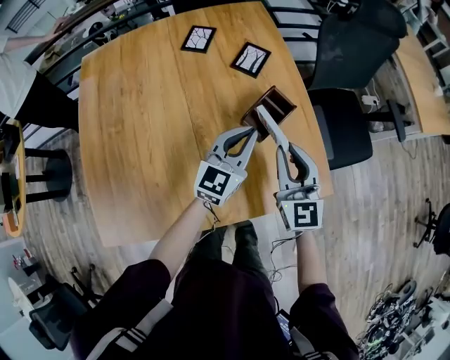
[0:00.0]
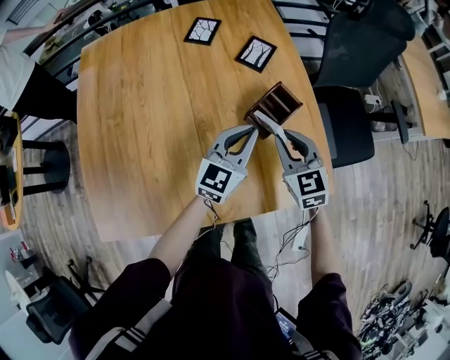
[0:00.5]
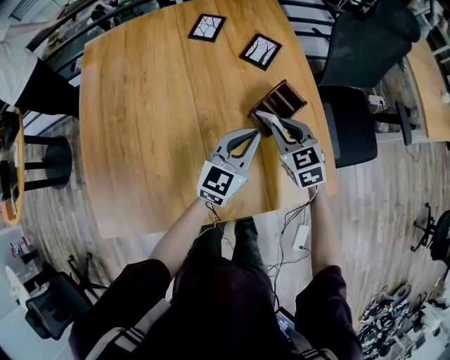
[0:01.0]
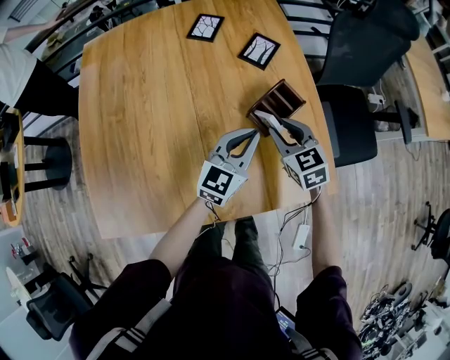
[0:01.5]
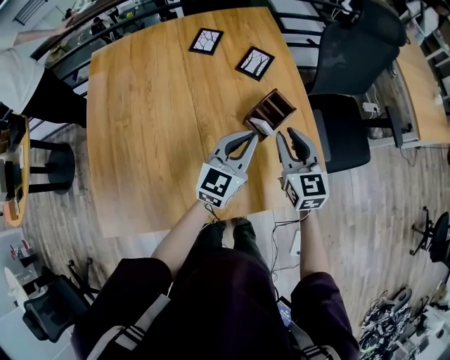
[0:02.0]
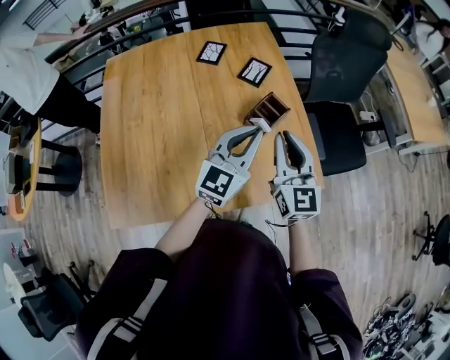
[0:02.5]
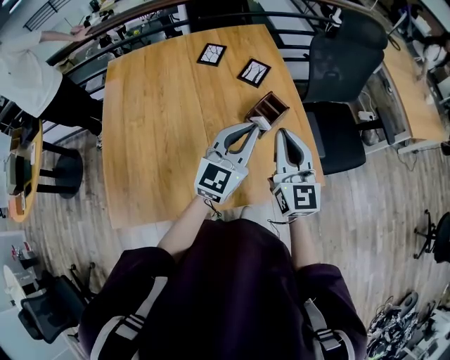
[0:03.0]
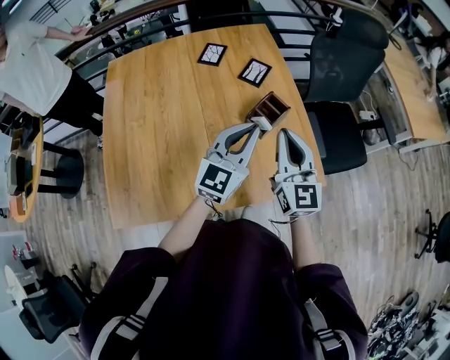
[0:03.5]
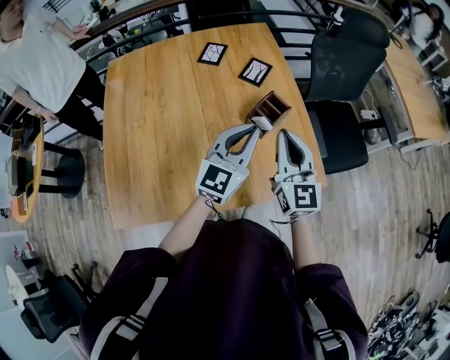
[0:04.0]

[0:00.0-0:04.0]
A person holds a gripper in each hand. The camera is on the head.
0:00.0 to 0:02.0: The right gripper goes downward and returns, roughly 10 cm each way.
0:02.0 to 0:04.0: The grippers both shift upward and backward by about 15 cm. The right gripper closes its fingers.

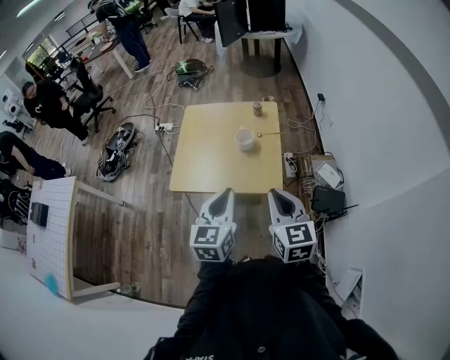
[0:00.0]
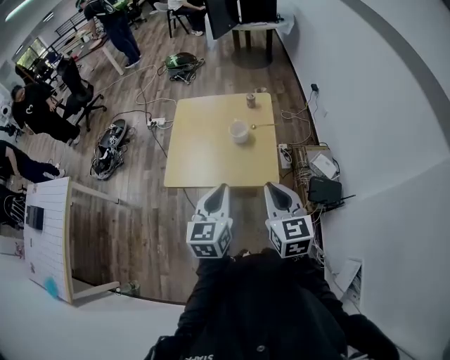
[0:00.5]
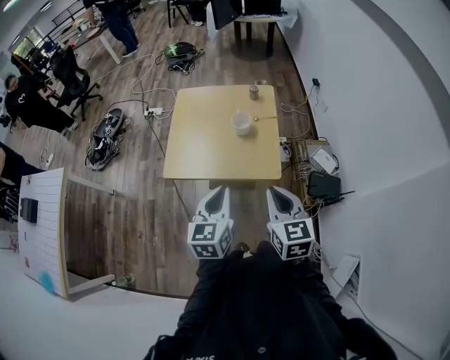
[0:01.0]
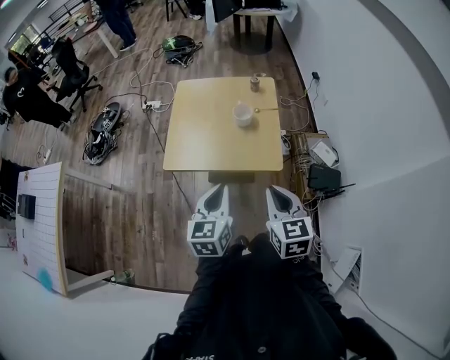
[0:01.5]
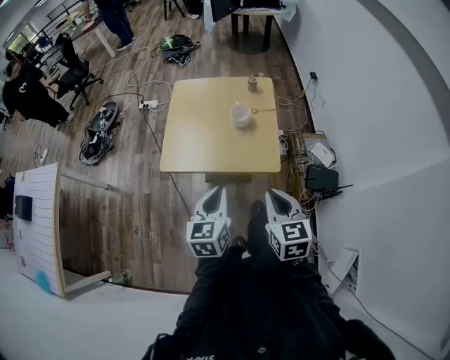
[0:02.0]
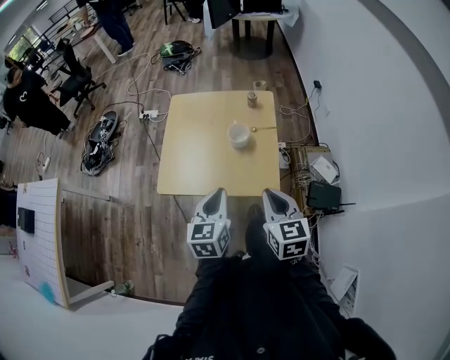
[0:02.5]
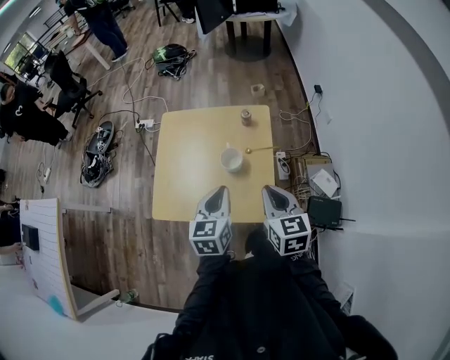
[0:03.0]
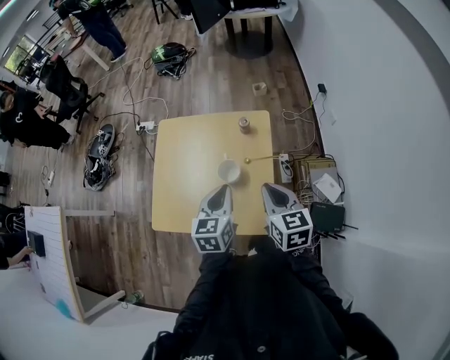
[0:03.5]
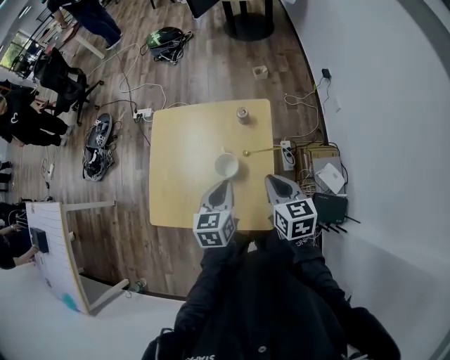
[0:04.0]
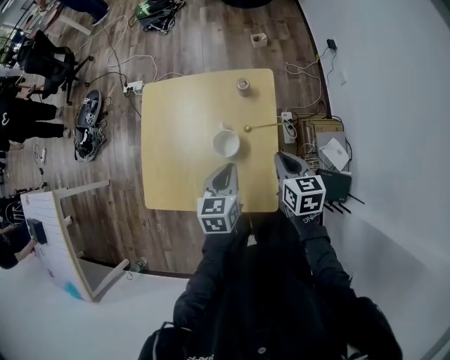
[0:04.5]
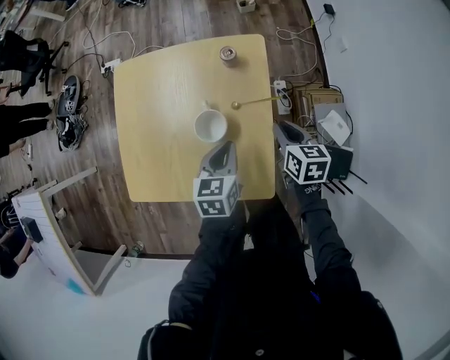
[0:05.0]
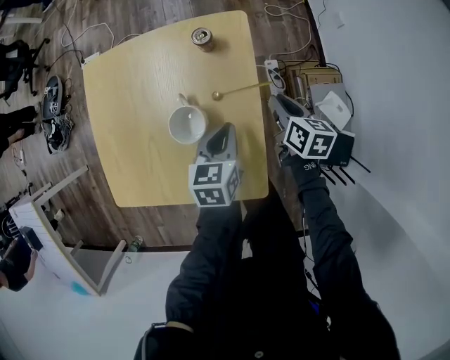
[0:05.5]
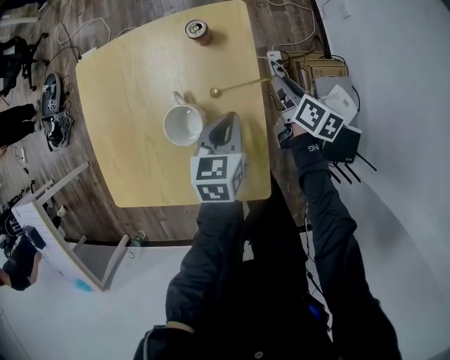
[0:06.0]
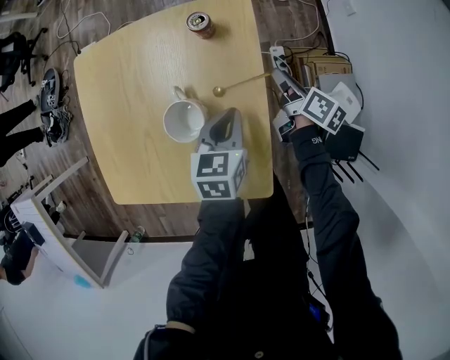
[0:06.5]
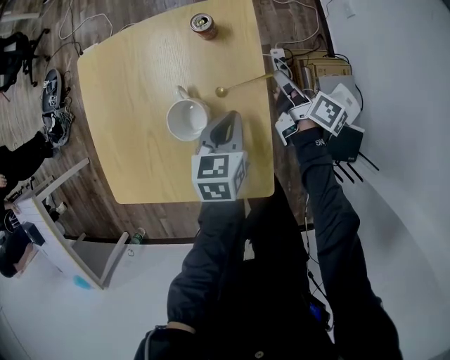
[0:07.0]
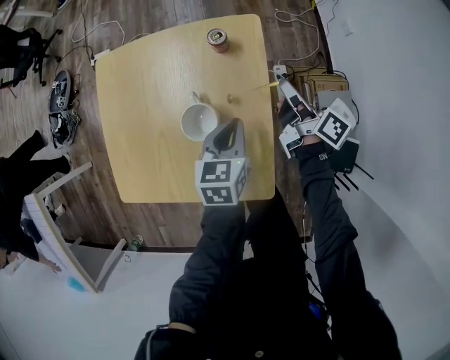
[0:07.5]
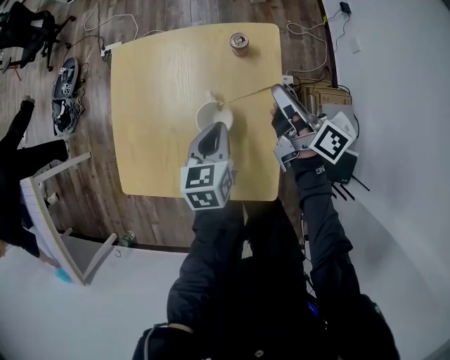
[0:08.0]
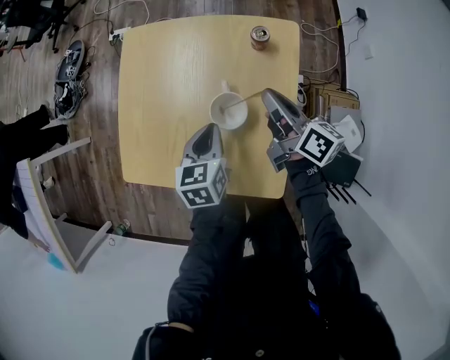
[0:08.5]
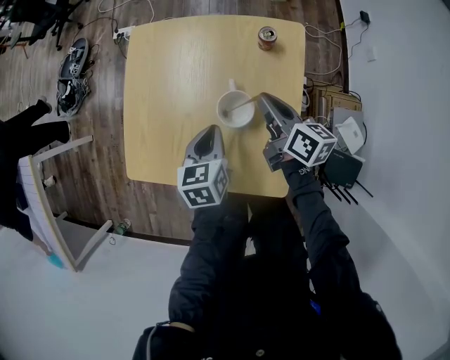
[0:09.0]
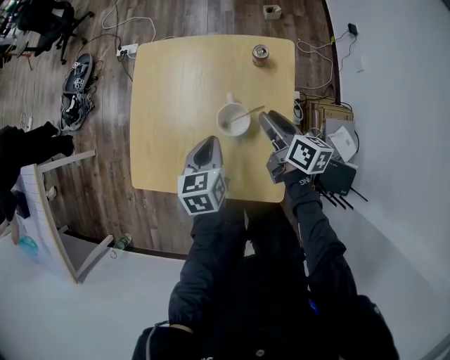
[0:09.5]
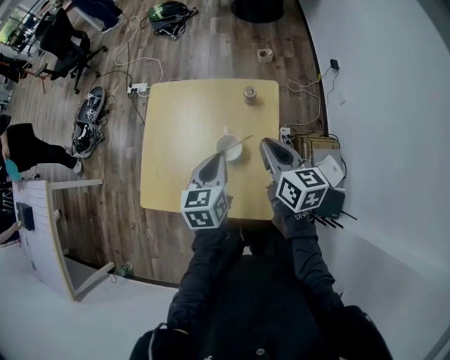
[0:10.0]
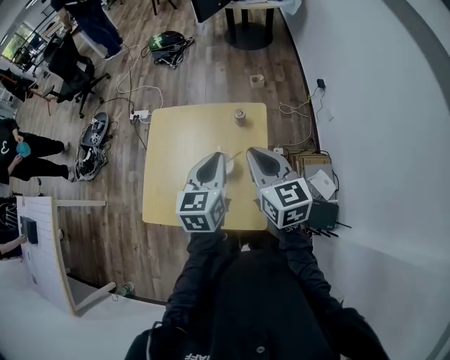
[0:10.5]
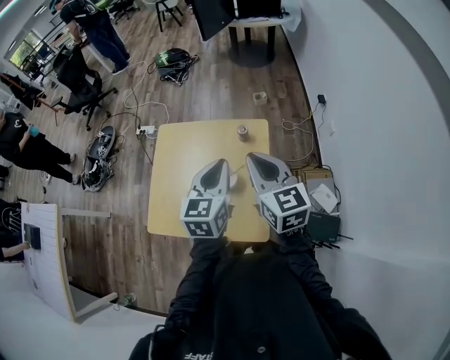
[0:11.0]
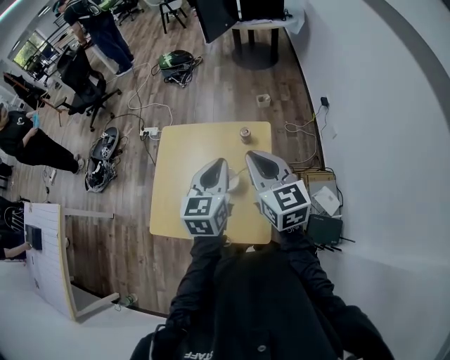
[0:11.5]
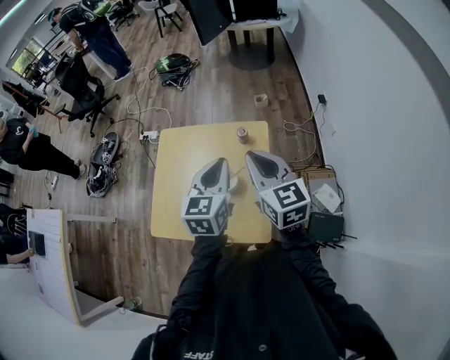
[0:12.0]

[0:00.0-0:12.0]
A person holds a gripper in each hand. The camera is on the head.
0:00.0 to 0:02.0: The left gripper travels downward and to the left by about 10 cm; the right gripper goes roughly 5 cm downward.
0:02.0 to 0:04.0: The left gripper travels forward and to the right by roughly 35 cm; the right gripper heads forward, covering roughly 35 cm.
0:04.0 to 0:06.0: The left gripper shifts some 25 cm downward, to the right and forward. The right gripper shifts approximately 35 cm downward and forward, changes its angle by approximately 40 degrees, and opens.
0:06.0 to 0:08.0: The left gripper travels to the left and upward by about 15 cm; the right gripper moves upward and to the left, some 20 cm, angles its fingers upward, by roughly 30 degrees, and closes up.
0:08.0 to 0:10.0: The right gripper heads upward, backward and to the left, covering roughly 15 cm, turns by some 40 degrees, and opens, then closes once more. Meanwhile the left gripper travels upward by about 15 cm.
0:10.0 to 0:12.0: The left gripper heads upward and to the right, covering approximately 15 cm, while the right gripper heads upward, covering some 15 cm, and swivels some 20 degrees.

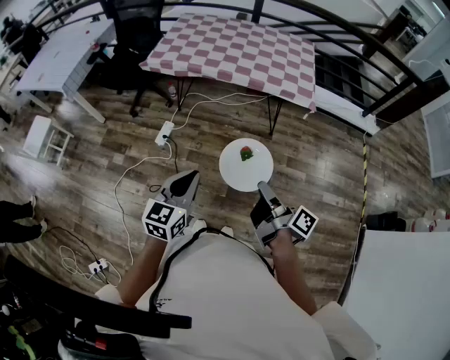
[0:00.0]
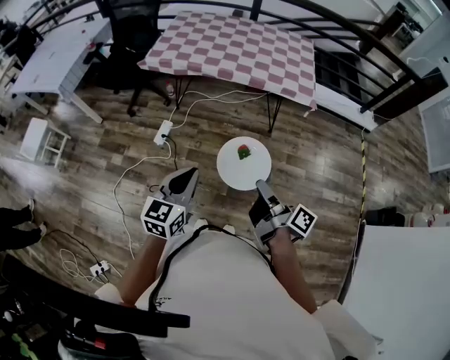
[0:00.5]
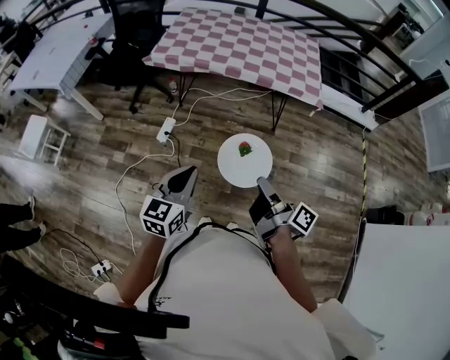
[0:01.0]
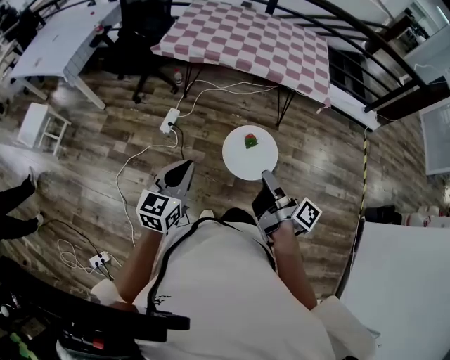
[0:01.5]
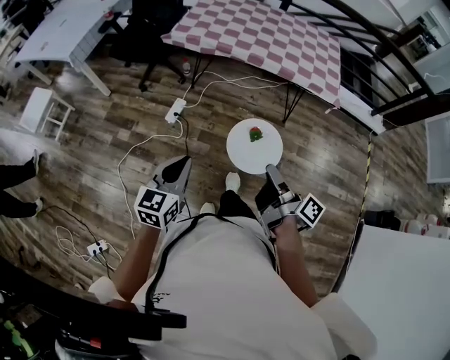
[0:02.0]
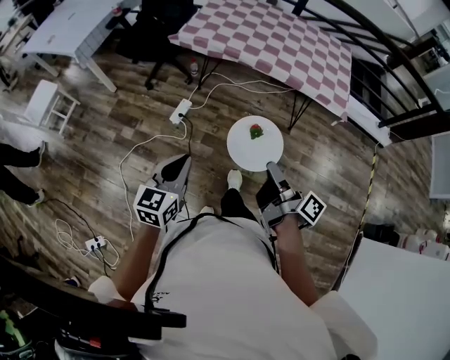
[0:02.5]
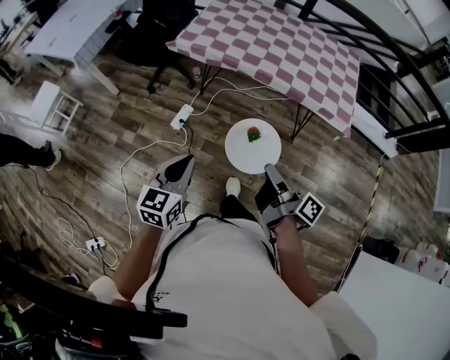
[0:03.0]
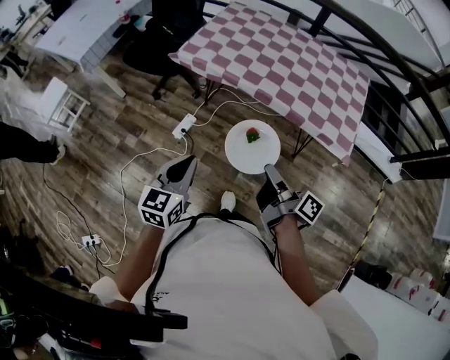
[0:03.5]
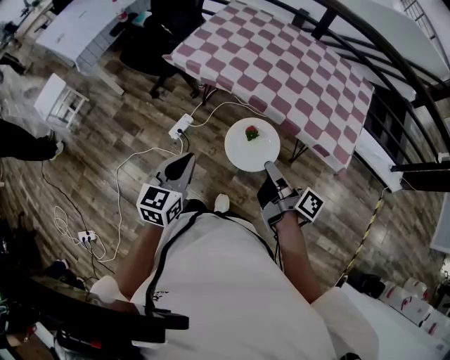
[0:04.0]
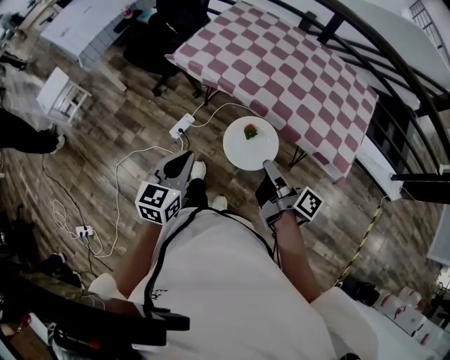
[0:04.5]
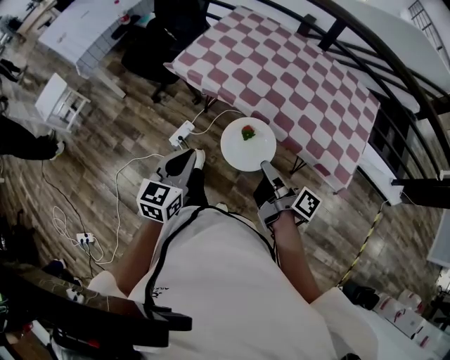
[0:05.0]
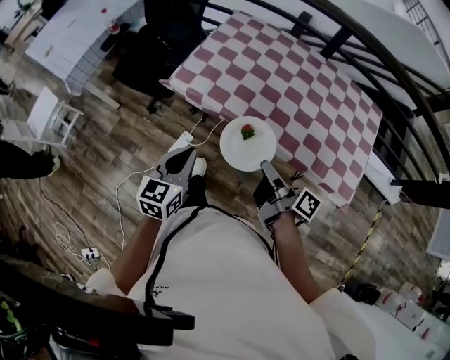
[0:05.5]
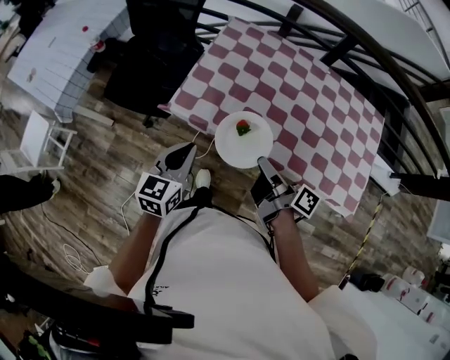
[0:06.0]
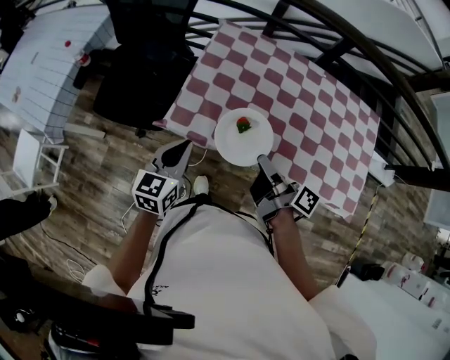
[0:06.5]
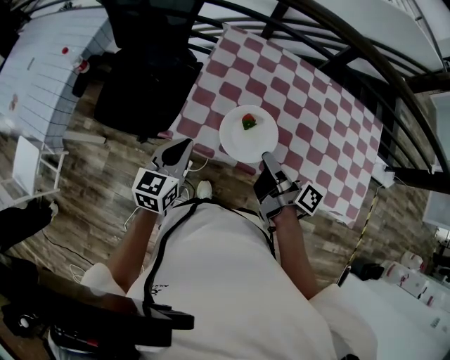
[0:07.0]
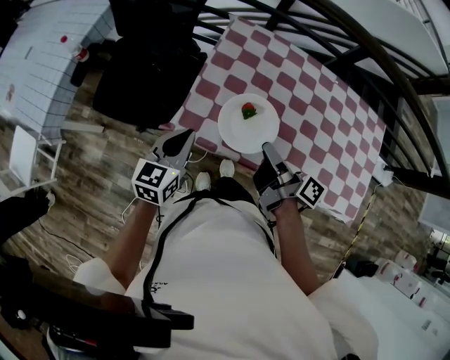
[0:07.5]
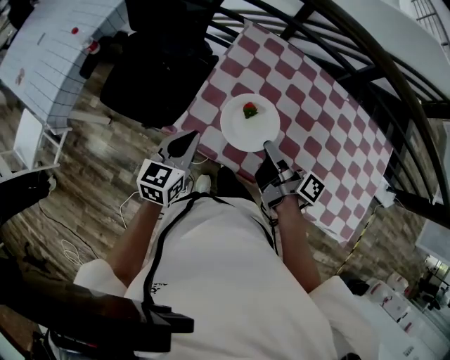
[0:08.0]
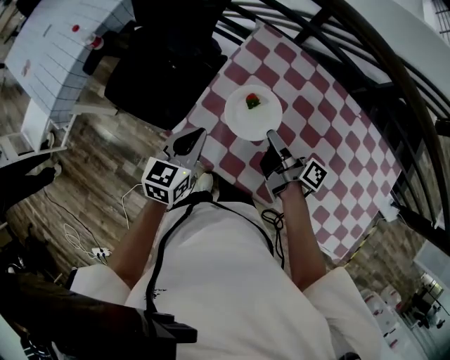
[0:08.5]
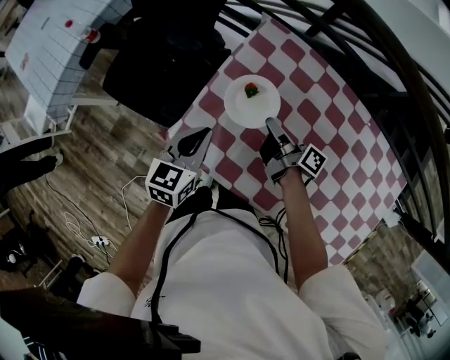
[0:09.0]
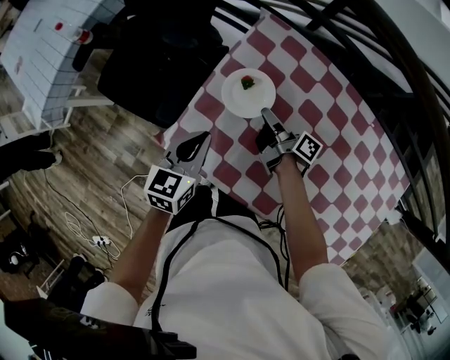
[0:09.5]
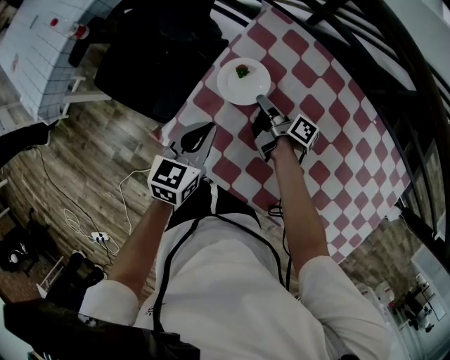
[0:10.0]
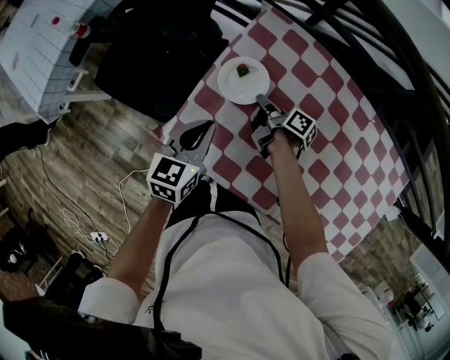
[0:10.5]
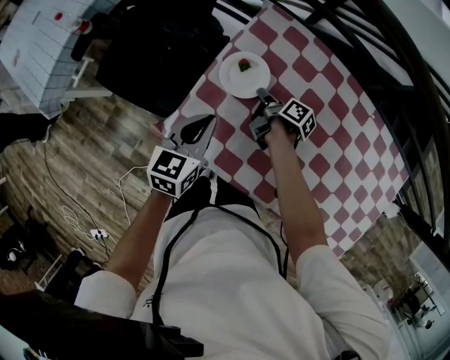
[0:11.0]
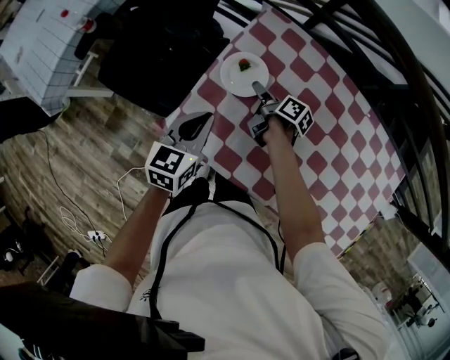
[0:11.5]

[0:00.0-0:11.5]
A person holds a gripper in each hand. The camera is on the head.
0:00.0 to 0:02.0: The left gripper ends up some 20 cm from where it was.
0:02.0 to 0:04.0: The left gripper changes place by some 35 cm.
0:04.0 to 0:06.0: The left gripper changes place by about 40 cm.
0:06.0 to 0:07.5: The left gripper moves roughly 20 cm.
0:07.5 to 0:09.5: The left gripper moves roughly 15 cm.
